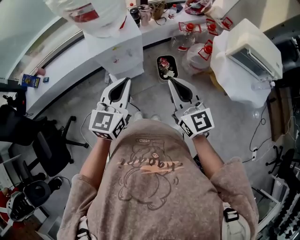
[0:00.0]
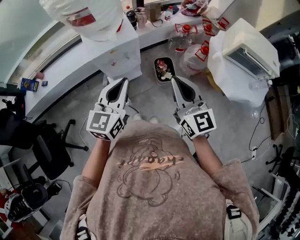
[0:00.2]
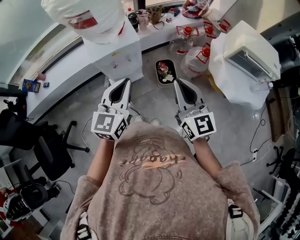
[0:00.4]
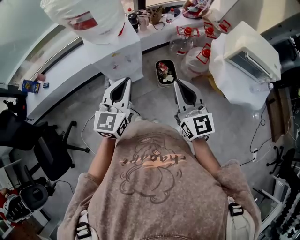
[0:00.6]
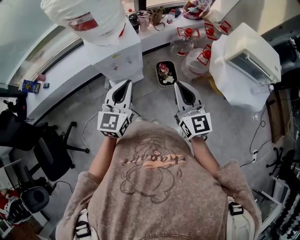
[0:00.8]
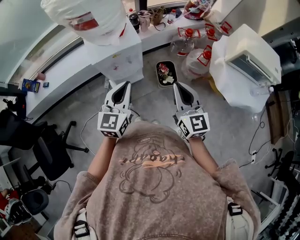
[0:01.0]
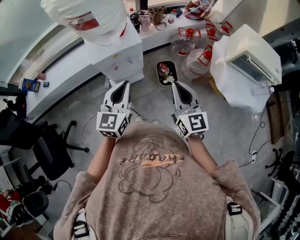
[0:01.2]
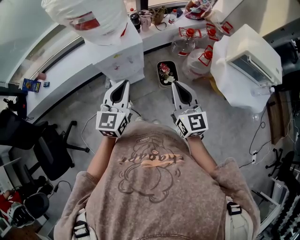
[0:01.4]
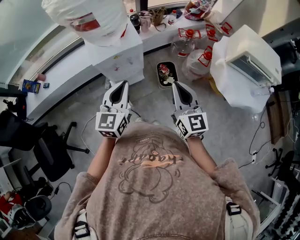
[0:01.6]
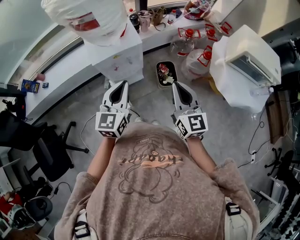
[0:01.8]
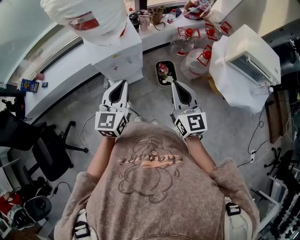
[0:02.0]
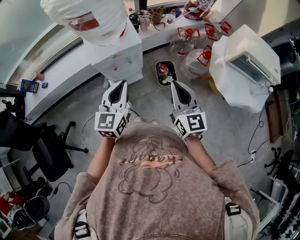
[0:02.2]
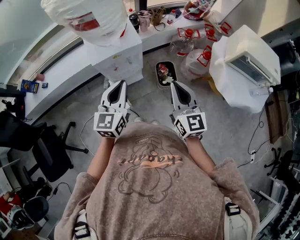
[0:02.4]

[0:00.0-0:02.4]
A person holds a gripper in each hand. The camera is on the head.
0:00.0 to 0:01.2: The right gripper moves about 5 cm; the left gripper changes place by some 5 cm.
0:01.2 to 0:02.4: The grippers move only a little.

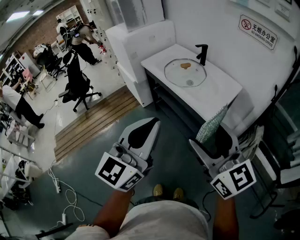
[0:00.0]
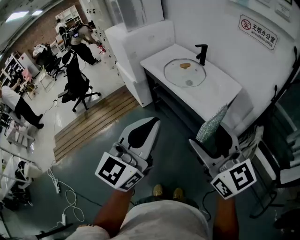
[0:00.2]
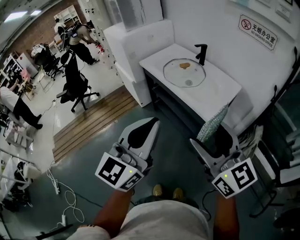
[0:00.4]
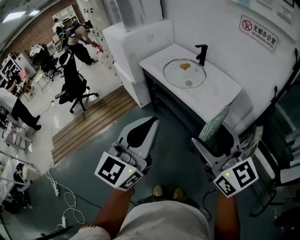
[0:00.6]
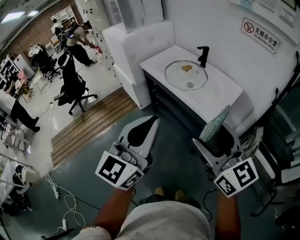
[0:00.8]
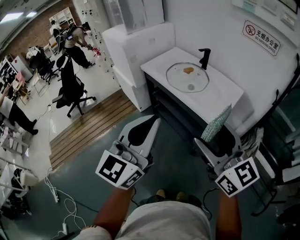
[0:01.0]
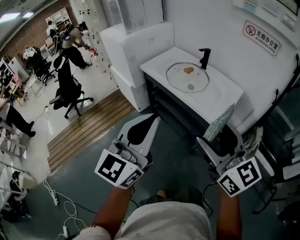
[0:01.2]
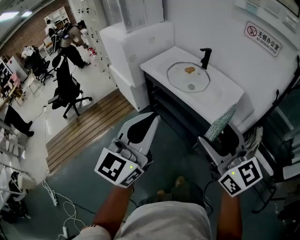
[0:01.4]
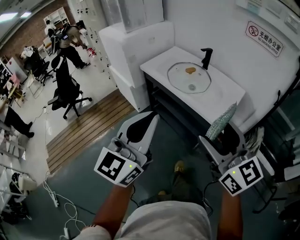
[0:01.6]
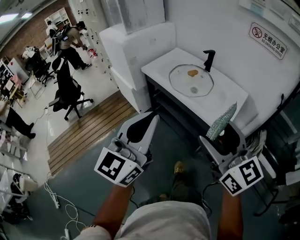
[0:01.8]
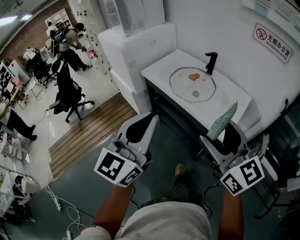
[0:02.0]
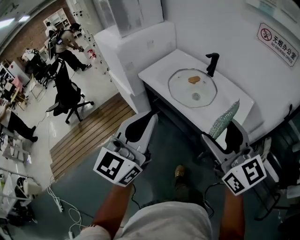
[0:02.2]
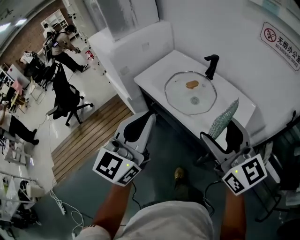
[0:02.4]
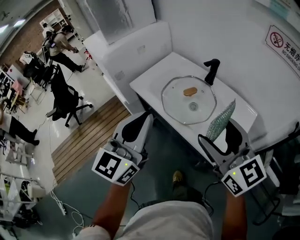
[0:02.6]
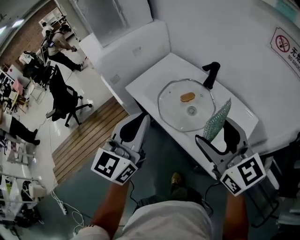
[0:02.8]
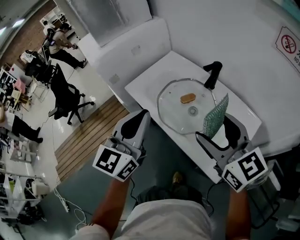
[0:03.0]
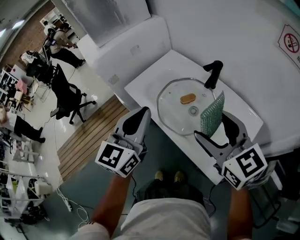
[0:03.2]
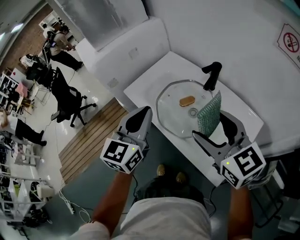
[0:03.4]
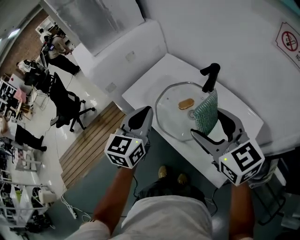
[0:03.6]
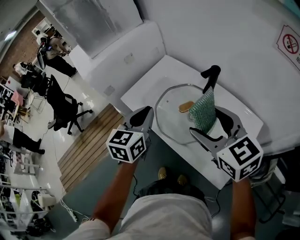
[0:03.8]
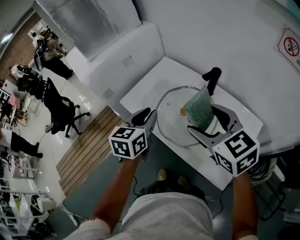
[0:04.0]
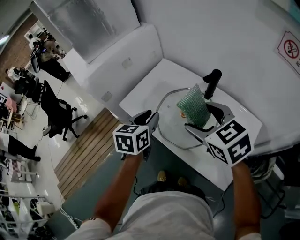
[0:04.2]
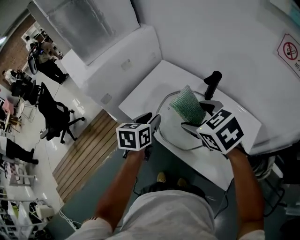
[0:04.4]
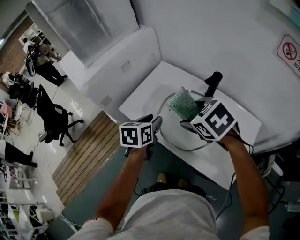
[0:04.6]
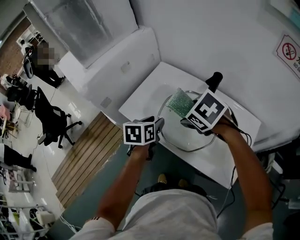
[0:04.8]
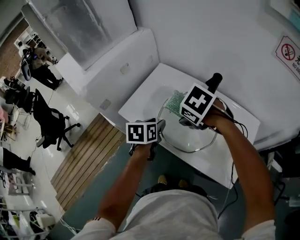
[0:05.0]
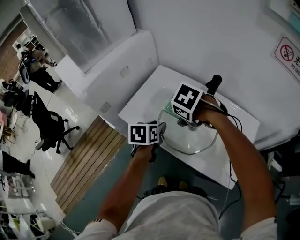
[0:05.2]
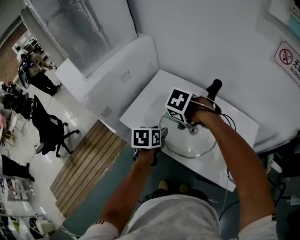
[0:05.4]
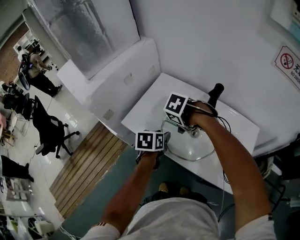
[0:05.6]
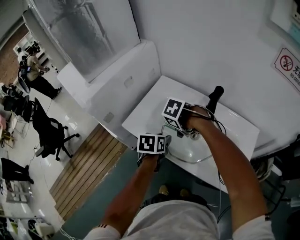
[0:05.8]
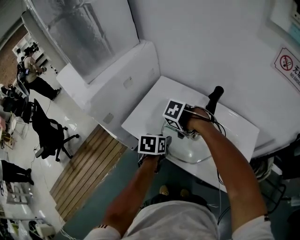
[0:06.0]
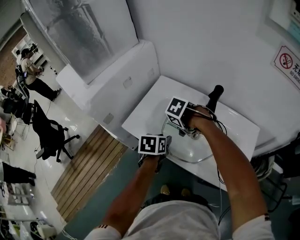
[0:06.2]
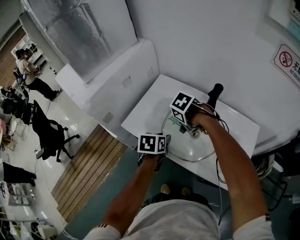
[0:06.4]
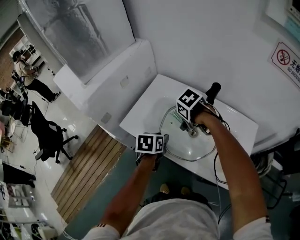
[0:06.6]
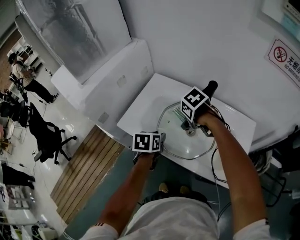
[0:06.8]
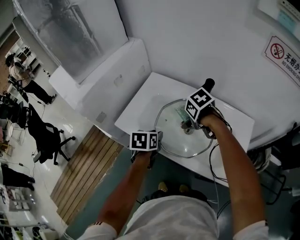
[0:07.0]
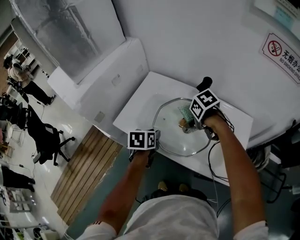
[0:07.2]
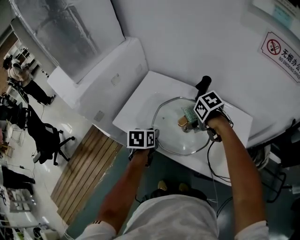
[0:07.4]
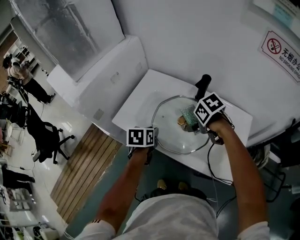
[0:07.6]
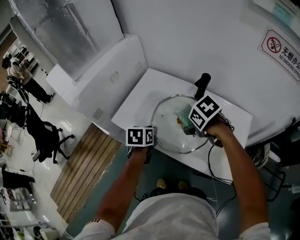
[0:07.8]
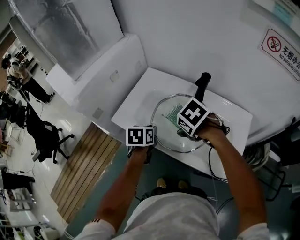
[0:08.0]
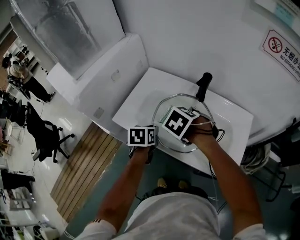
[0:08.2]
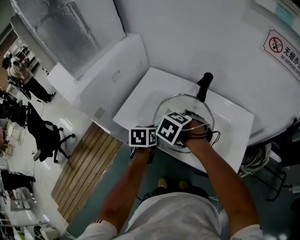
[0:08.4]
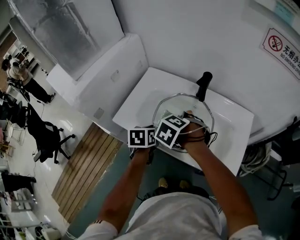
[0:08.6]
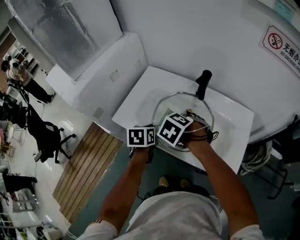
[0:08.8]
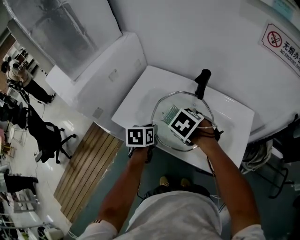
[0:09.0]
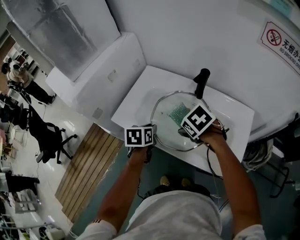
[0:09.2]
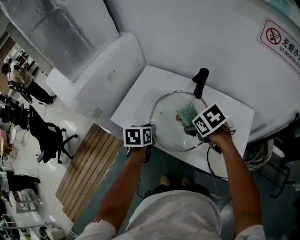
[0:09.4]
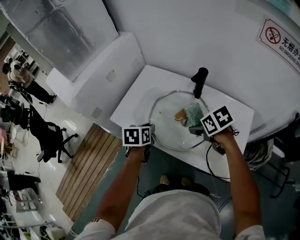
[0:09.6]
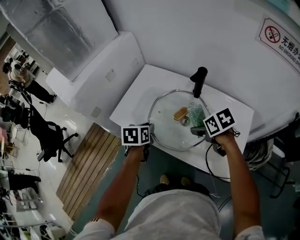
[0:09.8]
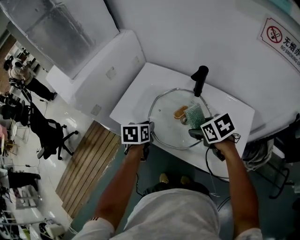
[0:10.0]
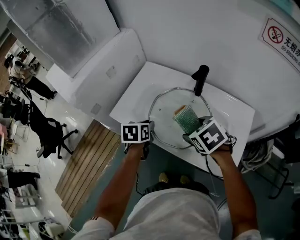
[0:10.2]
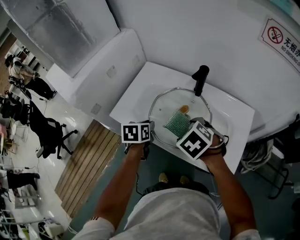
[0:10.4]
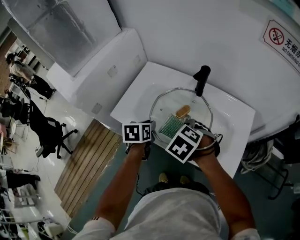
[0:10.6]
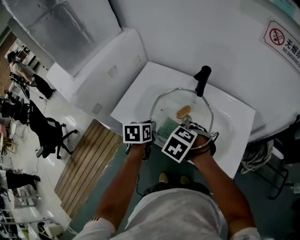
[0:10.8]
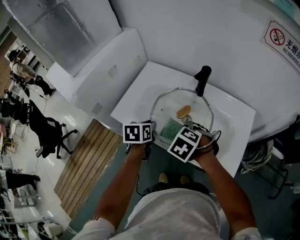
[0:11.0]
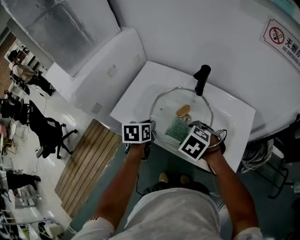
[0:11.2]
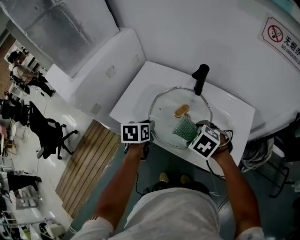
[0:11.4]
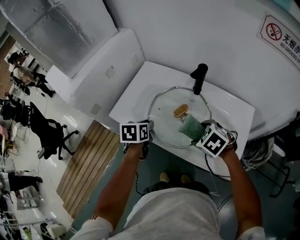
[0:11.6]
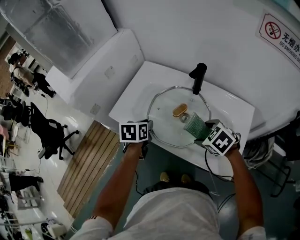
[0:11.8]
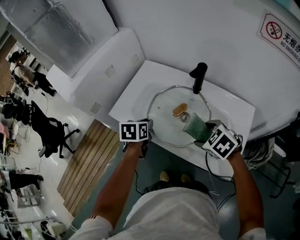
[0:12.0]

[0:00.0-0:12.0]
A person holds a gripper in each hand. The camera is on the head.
0:00.0 to 0:01.6: The left gripper shifts roughly 15 cm to the left and forward. The right gripper goes about 10 cm forward and to the left.
0:01.6 to 0:03.0: The two grippers go approximately 35 cm forward.
0:03.0 to 0:04.4: The right gripper is displaced forward and downward by roughly 15 cm, and tips its fingers downward by about 30 degrees; the left gripper heads downward and forward, covering approximately 25 cm, tips its fingers downward by some 30 degrees, and opens its fingers.
0:04.4 to 0:06.0: The right gripper shifts approximately 15 cm downward, and angles its fingers downward, by about 40 degrees. Meanwhile the left gripper moves downward, some 10 cm.
0:06.0 to 0:07.6: The right gripper moves about 10 cm, and turns by some 40 degrees.
0:07.6 to 0:09.0: The right gripper shifts by roughly 5 cm, and turns by approximately 30 degrees.
0:09.0 to 0:10.4: The right gripper travels to the right and back again, approximately 10 cm each way.
0:10.4 to 0:12.0: The right gripper heads to the right, covering roughly 10 cm.

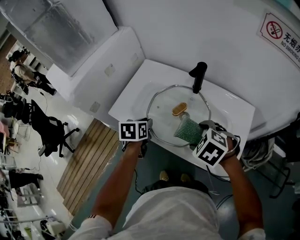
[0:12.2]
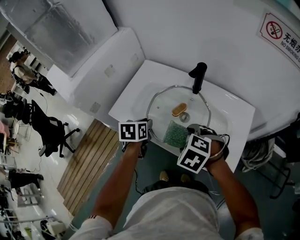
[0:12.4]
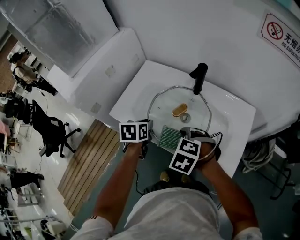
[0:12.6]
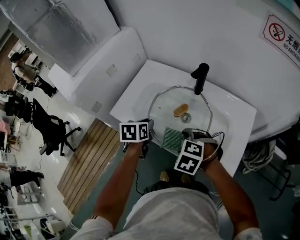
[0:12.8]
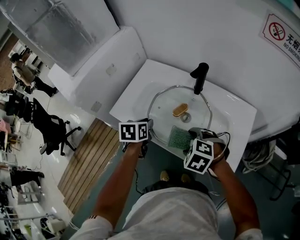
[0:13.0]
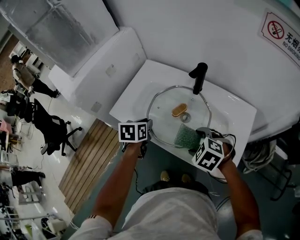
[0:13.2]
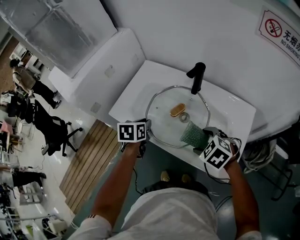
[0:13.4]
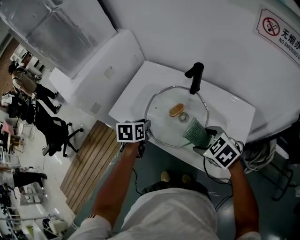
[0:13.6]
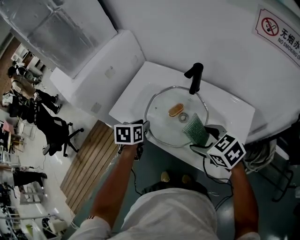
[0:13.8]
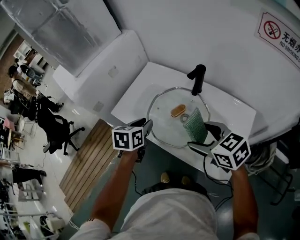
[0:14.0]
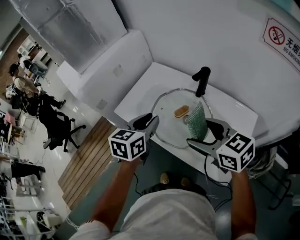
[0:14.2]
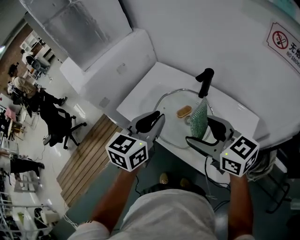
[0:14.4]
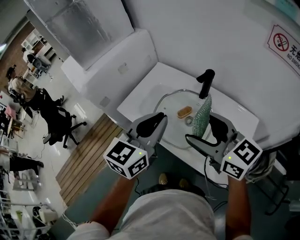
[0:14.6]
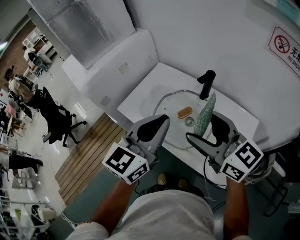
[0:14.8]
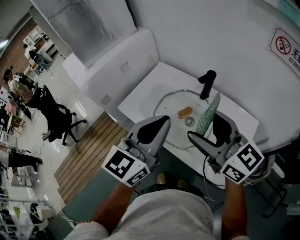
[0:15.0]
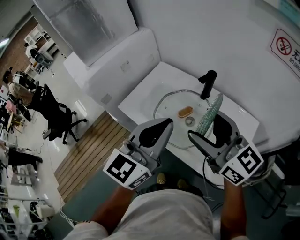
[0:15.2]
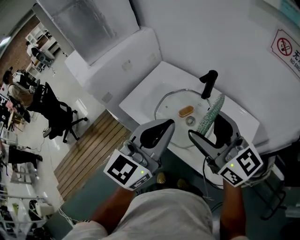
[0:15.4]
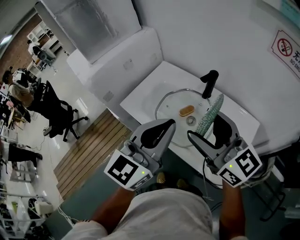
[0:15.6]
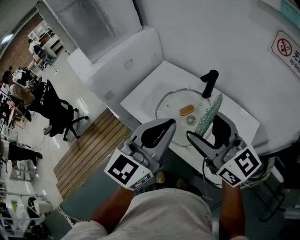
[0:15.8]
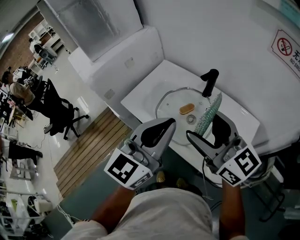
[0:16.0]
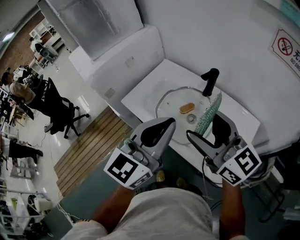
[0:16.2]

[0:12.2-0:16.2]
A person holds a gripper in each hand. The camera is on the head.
0:12.2 to 0:13.6: The right gripper travels to the left and back again, about 5 cm each way.
0:13.6 to 0:14.8: The right gripper shifts approximately 20 cm upward, and points its fingers some 50 degrees further upward. The left gripper goes about 25 cm upward and backward, and points its fingers some 50 degrees further upward.
0:14.8 to 0:16.2: The grippers make only small movements.

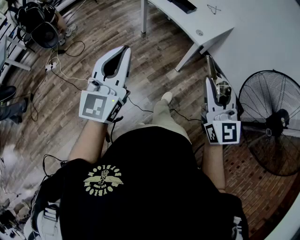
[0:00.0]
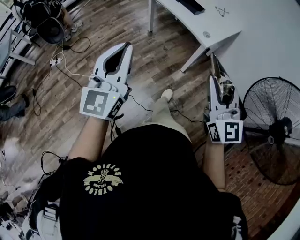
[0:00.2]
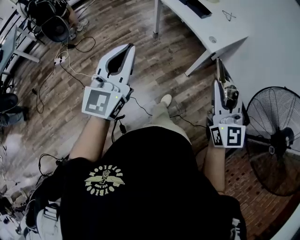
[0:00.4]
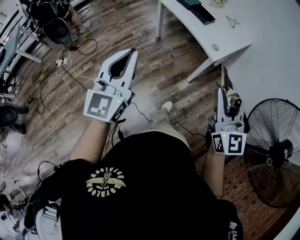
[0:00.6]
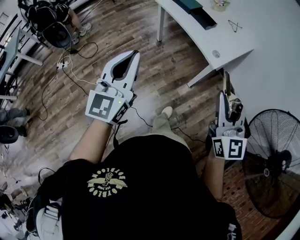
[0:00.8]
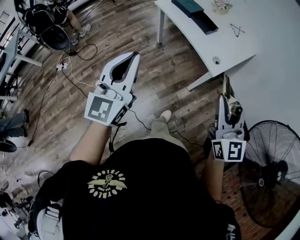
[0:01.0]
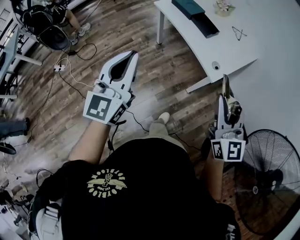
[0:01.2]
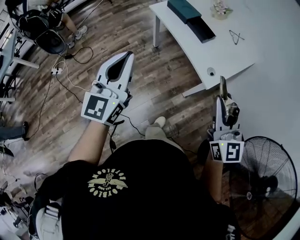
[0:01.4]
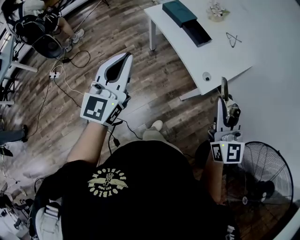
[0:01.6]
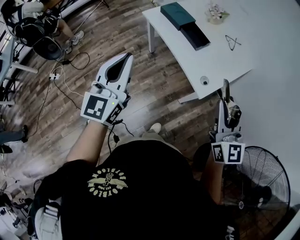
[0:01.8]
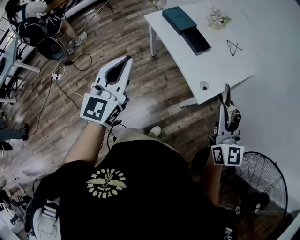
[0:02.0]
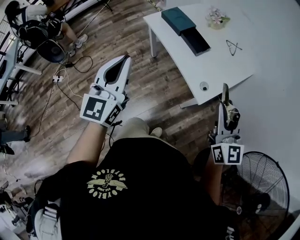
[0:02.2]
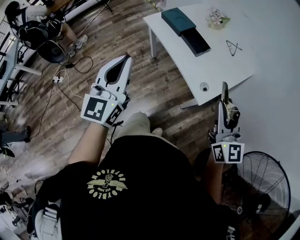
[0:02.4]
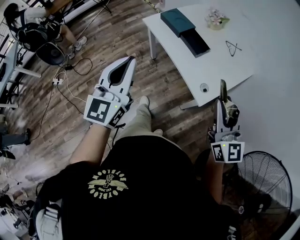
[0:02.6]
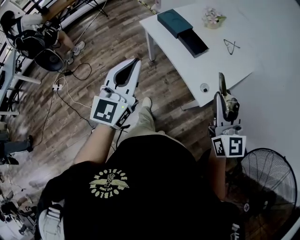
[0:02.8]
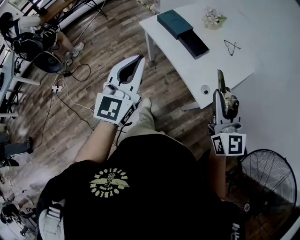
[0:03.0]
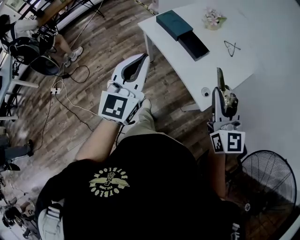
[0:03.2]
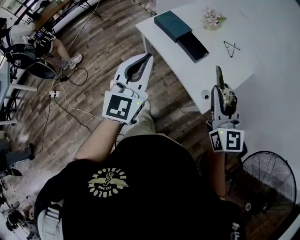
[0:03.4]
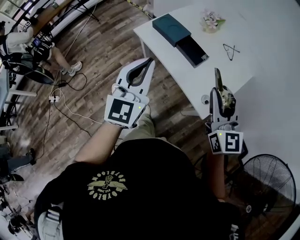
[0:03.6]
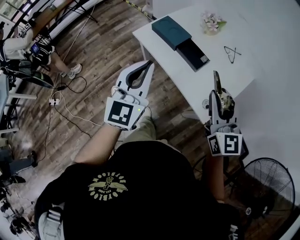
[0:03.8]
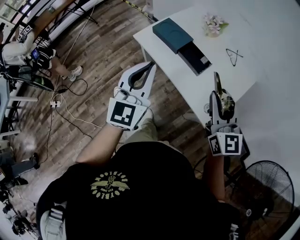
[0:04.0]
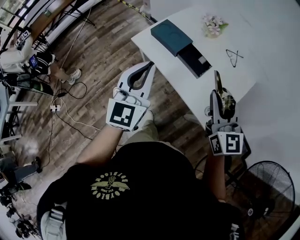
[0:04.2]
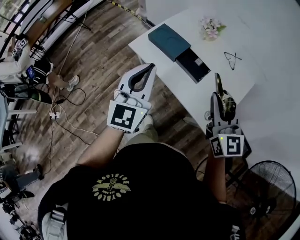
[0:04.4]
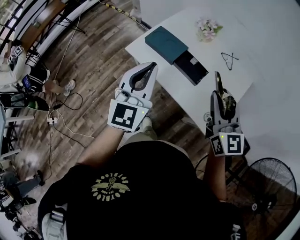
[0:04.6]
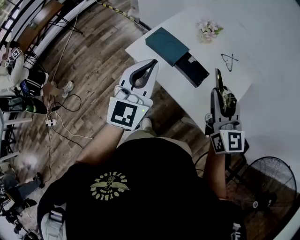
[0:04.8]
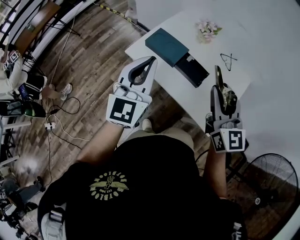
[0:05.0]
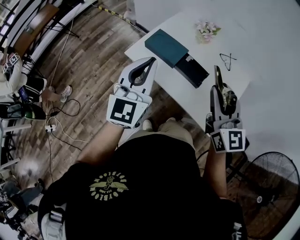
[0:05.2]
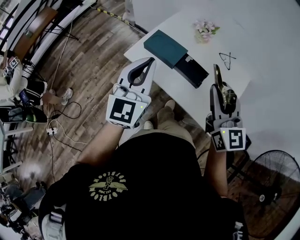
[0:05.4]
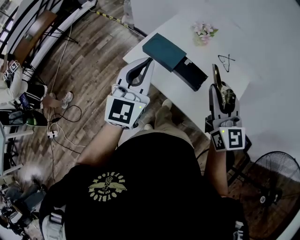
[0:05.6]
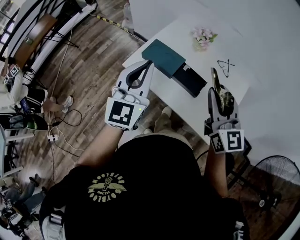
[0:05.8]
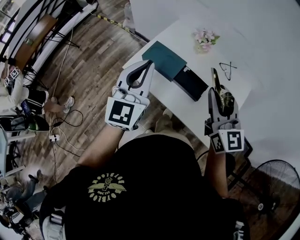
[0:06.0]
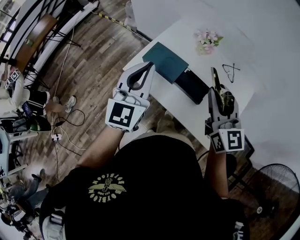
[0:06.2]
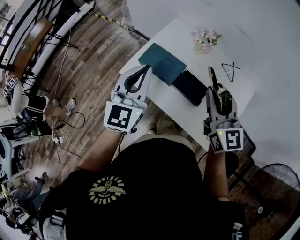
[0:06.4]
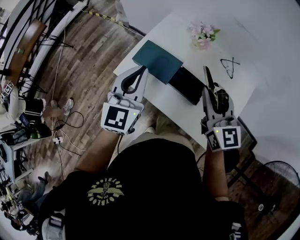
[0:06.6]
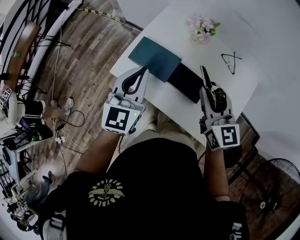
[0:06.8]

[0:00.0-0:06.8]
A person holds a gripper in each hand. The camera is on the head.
0:00.0 to 0:01.4: The grippers both shift forward by some 30 cm.
0:01.4 to 0:02.8: The left gripper is displaced forward and to the right by some 15 cm. The right gripper shifts approximately 10 cm forward.
0:02.8 to 0:04.0: The grippers both shift forward by about 20 cm.
0:04.0 to 0:05.4: Both grippers move forward and to the left, some 15 cm.
0:05.4 to 0:06.8: Both grippers travel together forward and downward, roughly 20 cm.
